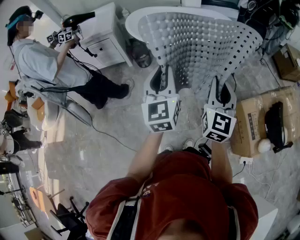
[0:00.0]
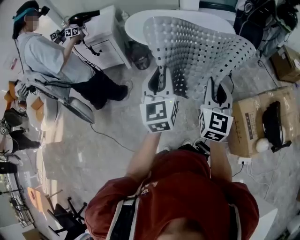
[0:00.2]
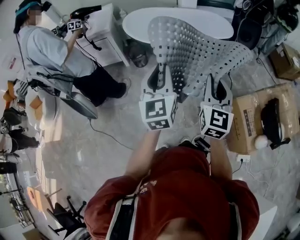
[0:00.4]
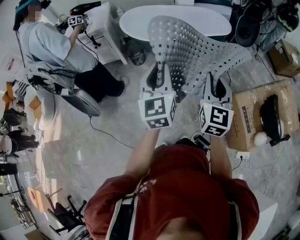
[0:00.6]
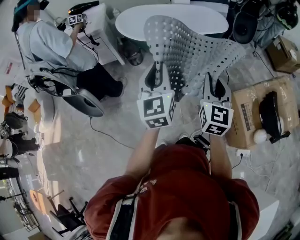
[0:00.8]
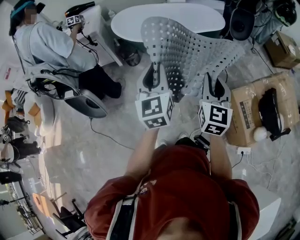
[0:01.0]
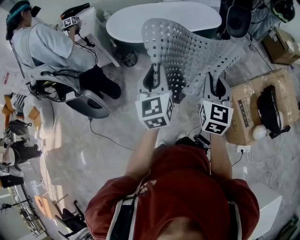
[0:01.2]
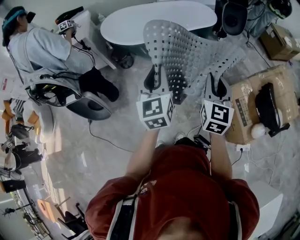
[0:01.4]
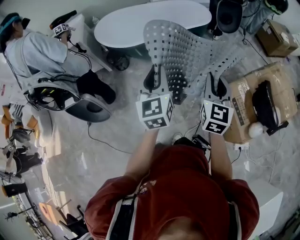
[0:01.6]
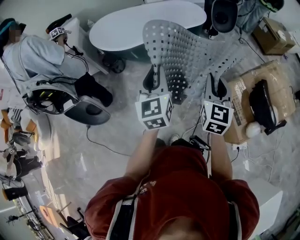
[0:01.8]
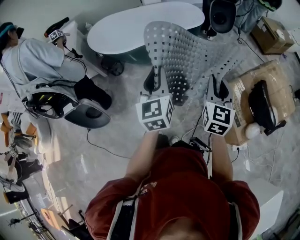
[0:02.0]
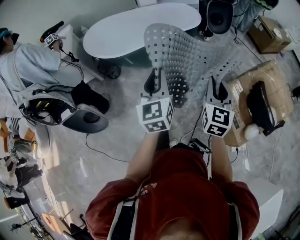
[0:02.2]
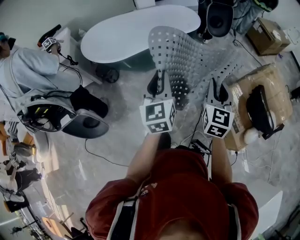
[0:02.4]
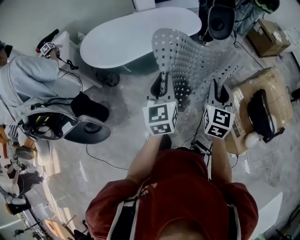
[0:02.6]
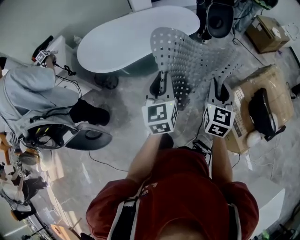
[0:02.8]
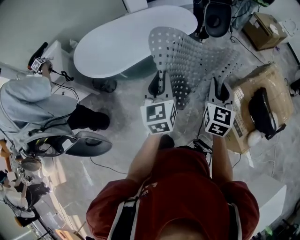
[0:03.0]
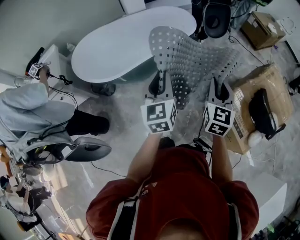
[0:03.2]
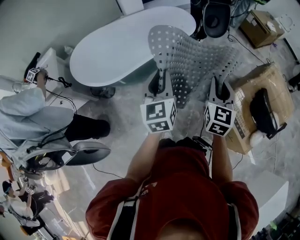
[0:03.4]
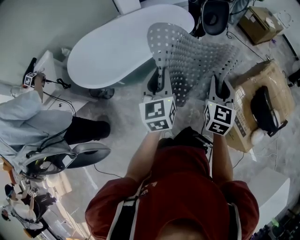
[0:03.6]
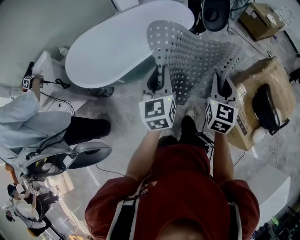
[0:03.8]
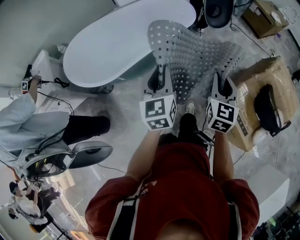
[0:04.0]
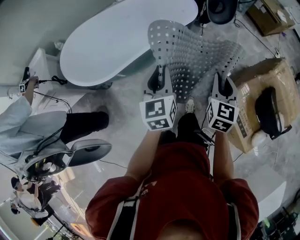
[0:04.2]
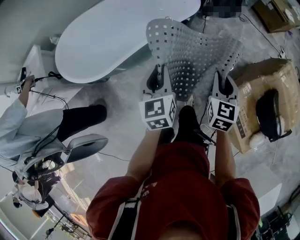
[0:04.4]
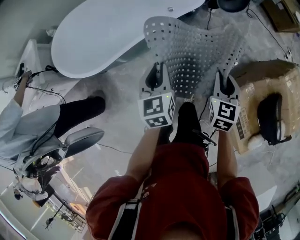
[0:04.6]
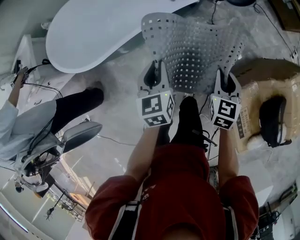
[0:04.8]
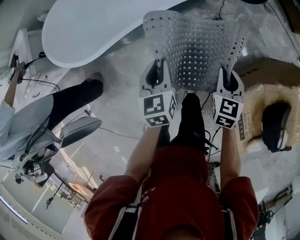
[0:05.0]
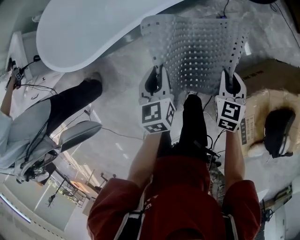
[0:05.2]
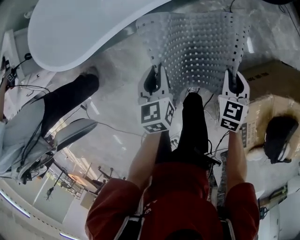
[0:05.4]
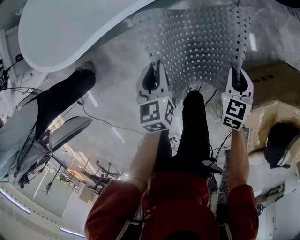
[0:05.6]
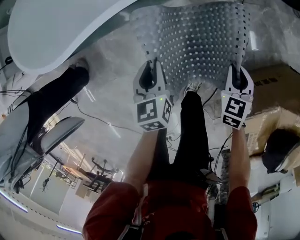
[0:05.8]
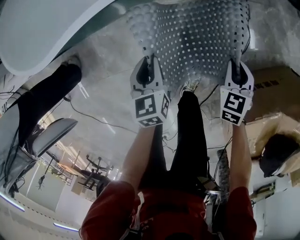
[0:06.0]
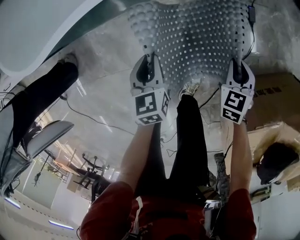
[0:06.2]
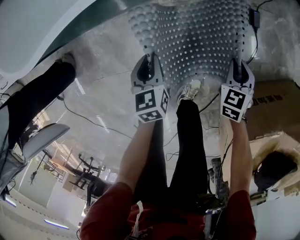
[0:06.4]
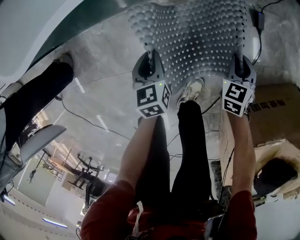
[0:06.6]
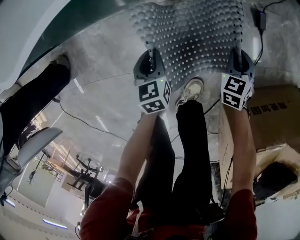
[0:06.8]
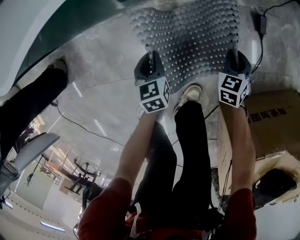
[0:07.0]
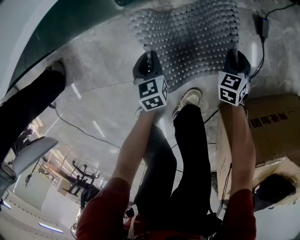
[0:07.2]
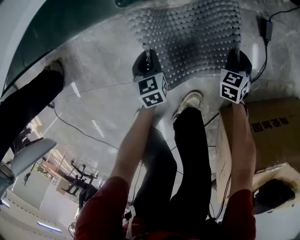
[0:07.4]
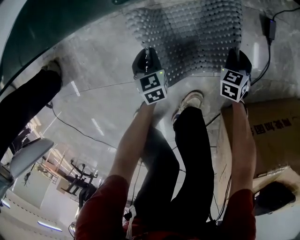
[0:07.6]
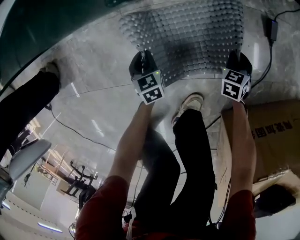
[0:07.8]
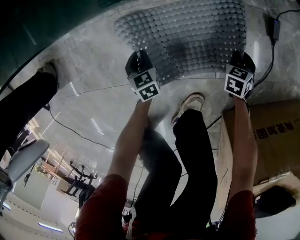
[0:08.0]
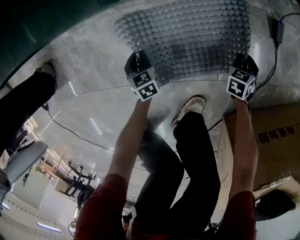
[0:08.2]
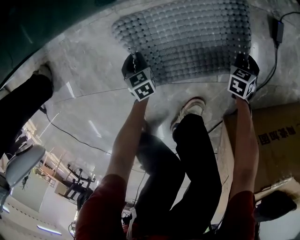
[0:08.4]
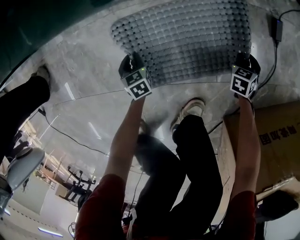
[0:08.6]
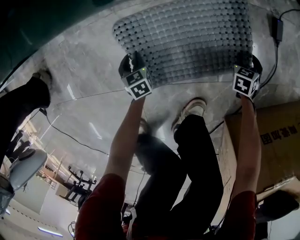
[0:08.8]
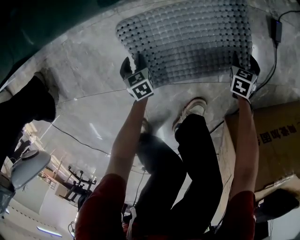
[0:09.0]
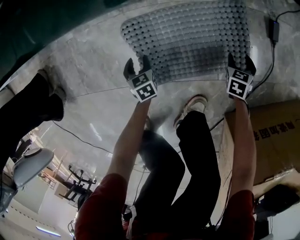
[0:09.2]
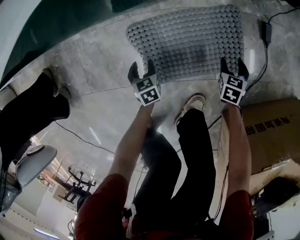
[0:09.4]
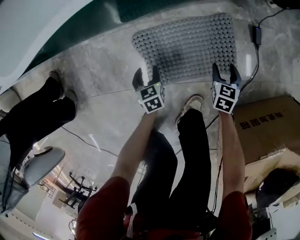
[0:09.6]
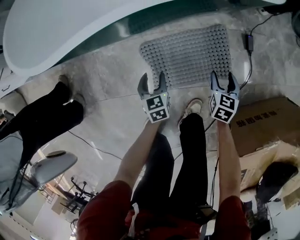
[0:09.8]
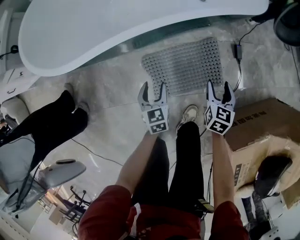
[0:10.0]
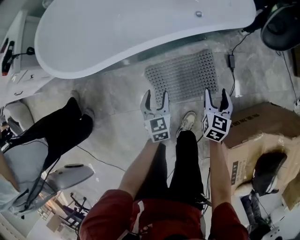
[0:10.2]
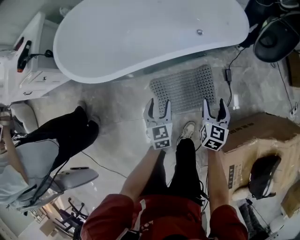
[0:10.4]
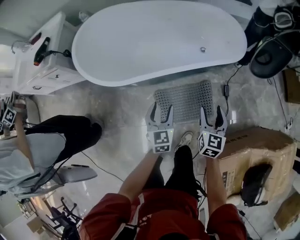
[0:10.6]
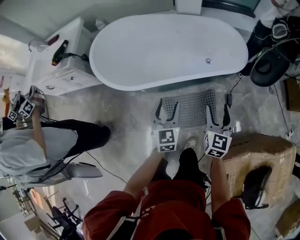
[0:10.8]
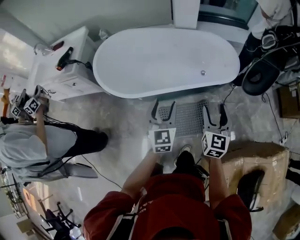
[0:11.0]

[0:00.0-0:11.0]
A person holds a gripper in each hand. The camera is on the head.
0:00.0 to 0:01.6: Both grippers move to the right, roughly 15 cm.
0:01.6 to 0:03.2: The two grippers go about 20 cm forward.
0:03.2 to 0:04.8: The two grippers go about 30 cm downward and forward. The right gripper changes its angle by some 20 degrees. The left gripper rotates approximately 20 degrees.
0:04.8 to 0:06.2: Both grippers travel together downward, roughly 40 cm. The right gripper rotates some 30 degrees.
0:06.2 to 0:07.8: Both grippers move downward, approximately 30 cm.
0:07.8 to 0:09.4: The right gripper moves some 5 cm downward and comes back, and opens up; the left gripper moves roughly 10 cm downward and comes back, and opens up.
0:09.4 to 0:11.0: The two grippers go about 80 cm upward. The right gripper points its fingers roughly 40 degrees further upward. The left gripper points its fingers about 40 degrees further upward.

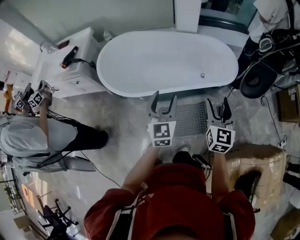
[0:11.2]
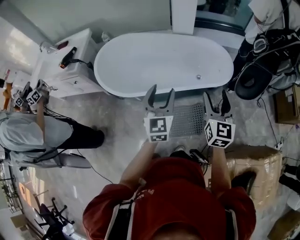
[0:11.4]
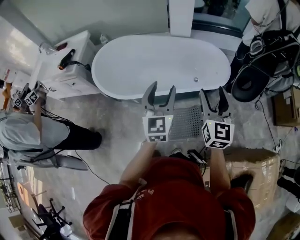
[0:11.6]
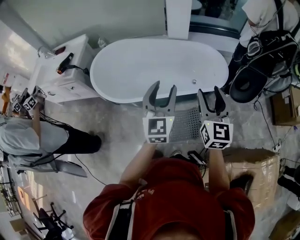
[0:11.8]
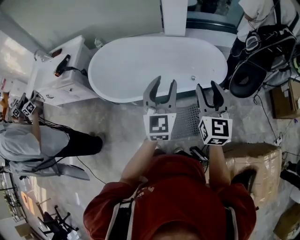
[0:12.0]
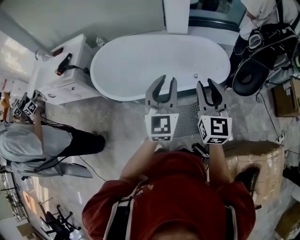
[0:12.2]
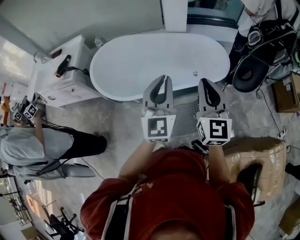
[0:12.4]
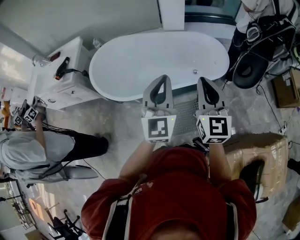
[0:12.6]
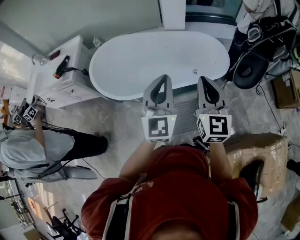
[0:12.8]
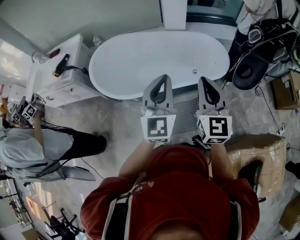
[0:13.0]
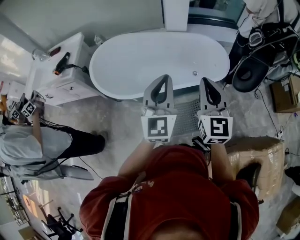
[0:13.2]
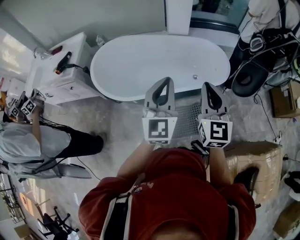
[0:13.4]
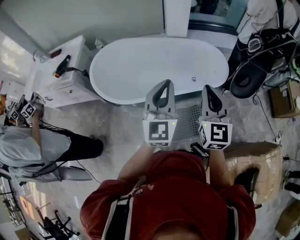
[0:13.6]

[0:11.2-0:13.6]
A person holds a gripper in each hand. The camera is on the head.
0:11.2 to 0:12.4: The grippers both shift upward by approximately 10 cm. The left gripper closes up; the right gripper closes.
0:12.4 to 0:13.6: There are only small adjustments of the grippers.

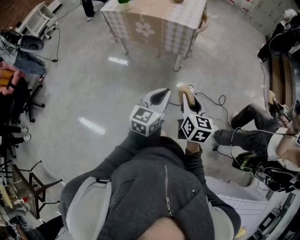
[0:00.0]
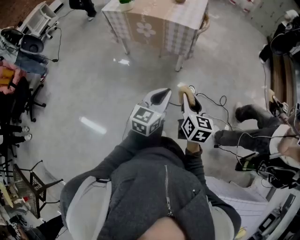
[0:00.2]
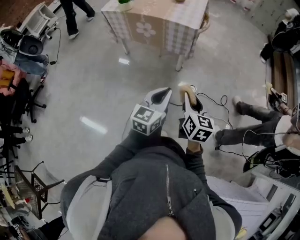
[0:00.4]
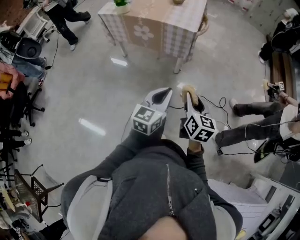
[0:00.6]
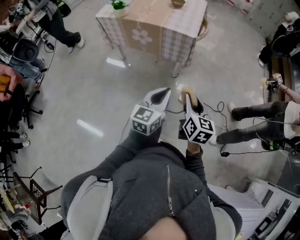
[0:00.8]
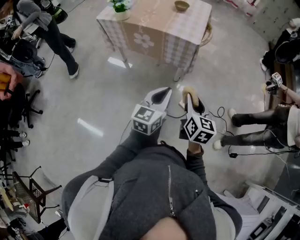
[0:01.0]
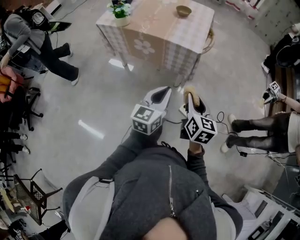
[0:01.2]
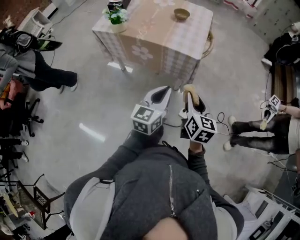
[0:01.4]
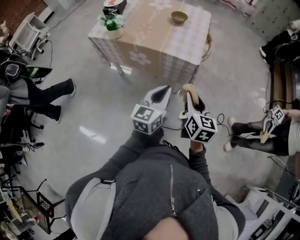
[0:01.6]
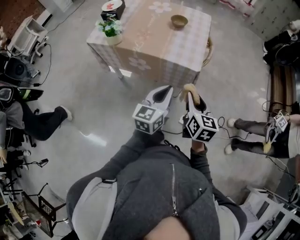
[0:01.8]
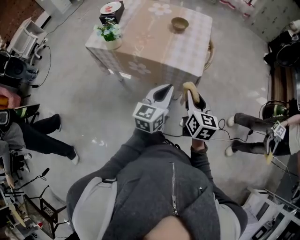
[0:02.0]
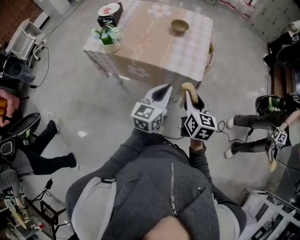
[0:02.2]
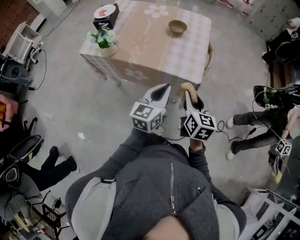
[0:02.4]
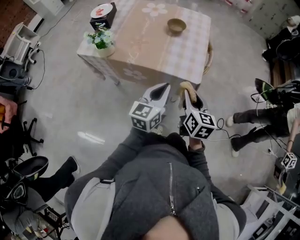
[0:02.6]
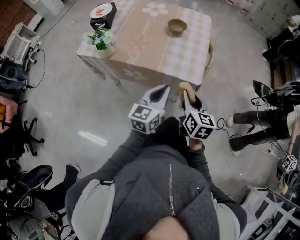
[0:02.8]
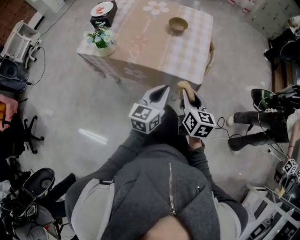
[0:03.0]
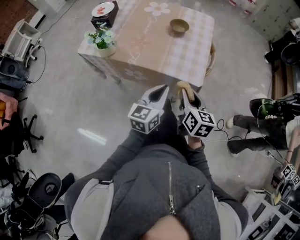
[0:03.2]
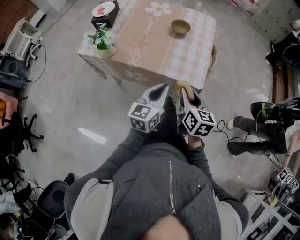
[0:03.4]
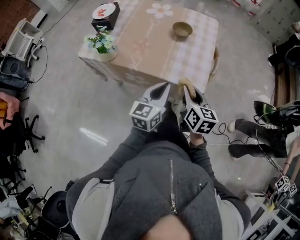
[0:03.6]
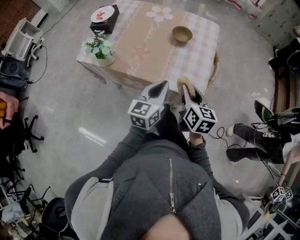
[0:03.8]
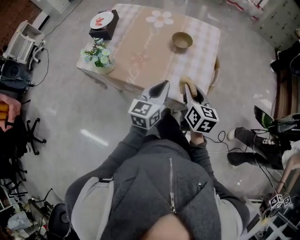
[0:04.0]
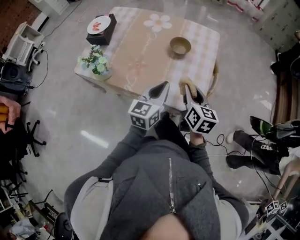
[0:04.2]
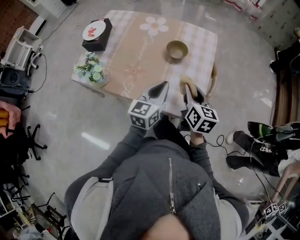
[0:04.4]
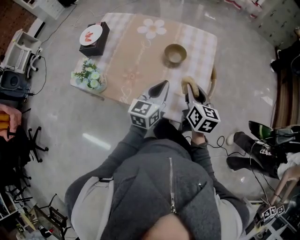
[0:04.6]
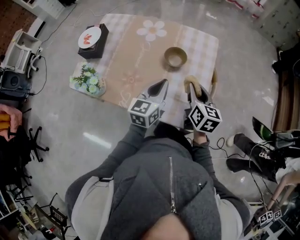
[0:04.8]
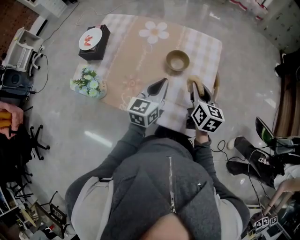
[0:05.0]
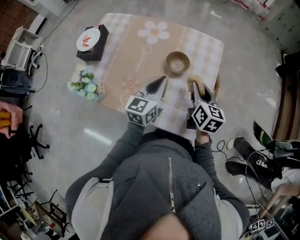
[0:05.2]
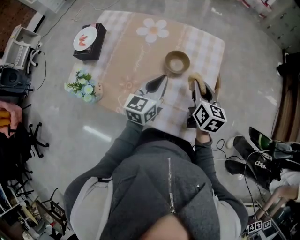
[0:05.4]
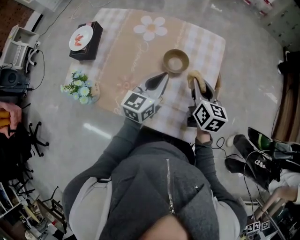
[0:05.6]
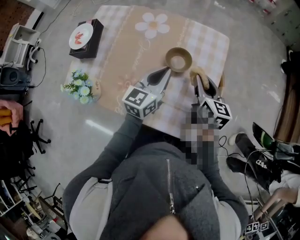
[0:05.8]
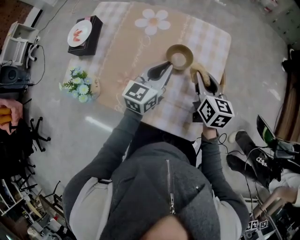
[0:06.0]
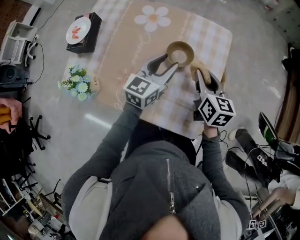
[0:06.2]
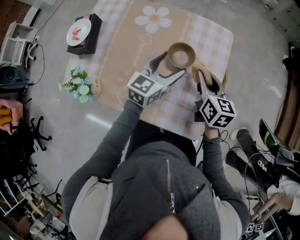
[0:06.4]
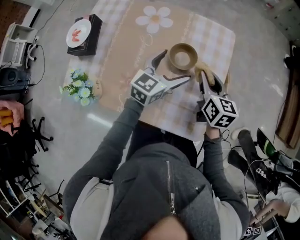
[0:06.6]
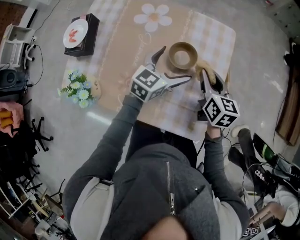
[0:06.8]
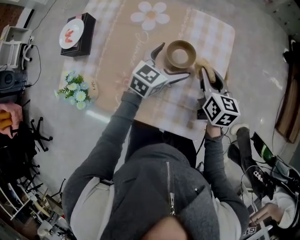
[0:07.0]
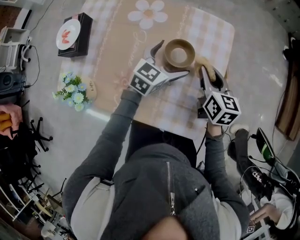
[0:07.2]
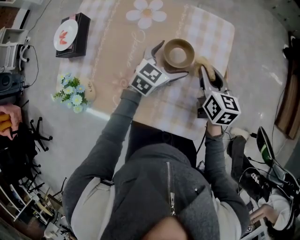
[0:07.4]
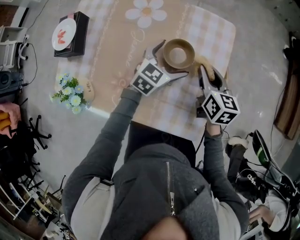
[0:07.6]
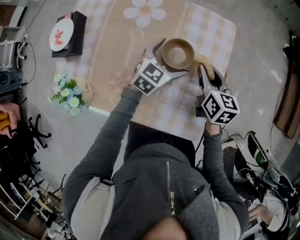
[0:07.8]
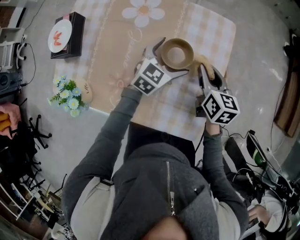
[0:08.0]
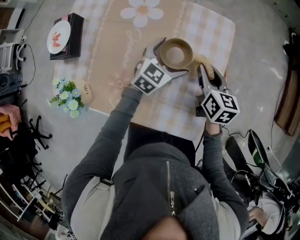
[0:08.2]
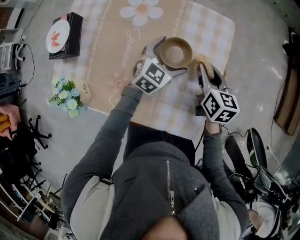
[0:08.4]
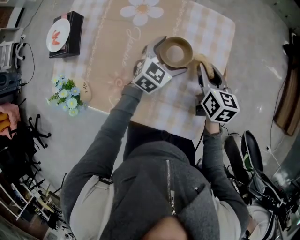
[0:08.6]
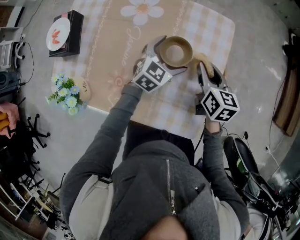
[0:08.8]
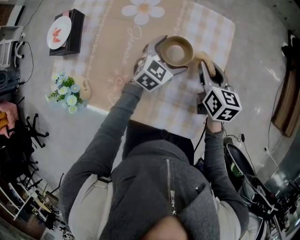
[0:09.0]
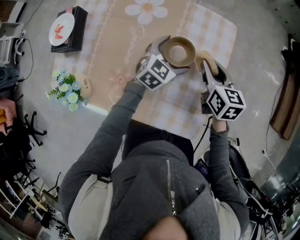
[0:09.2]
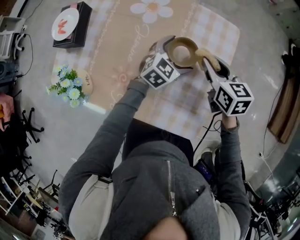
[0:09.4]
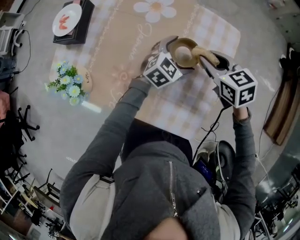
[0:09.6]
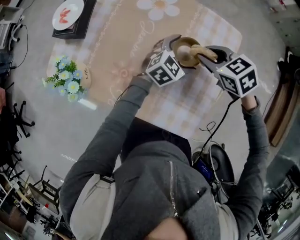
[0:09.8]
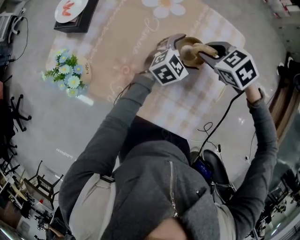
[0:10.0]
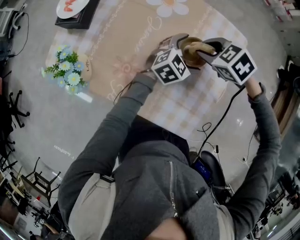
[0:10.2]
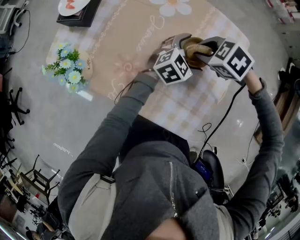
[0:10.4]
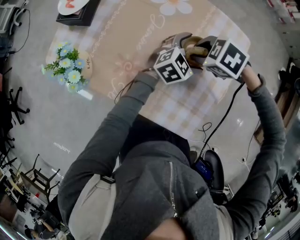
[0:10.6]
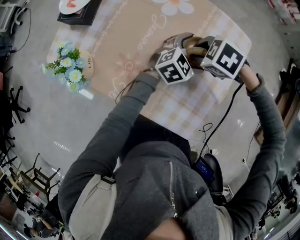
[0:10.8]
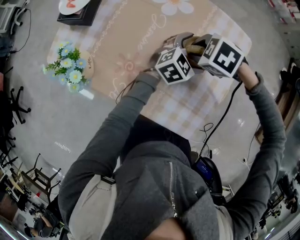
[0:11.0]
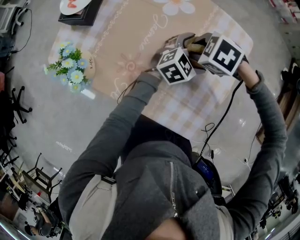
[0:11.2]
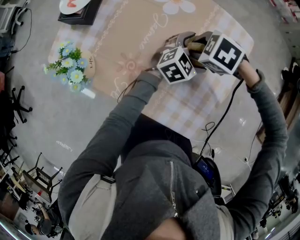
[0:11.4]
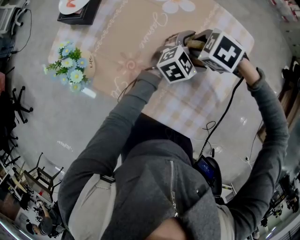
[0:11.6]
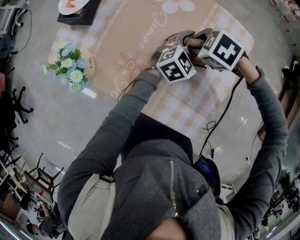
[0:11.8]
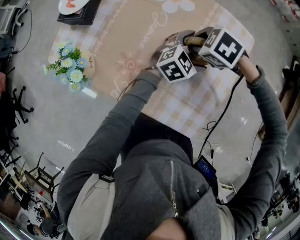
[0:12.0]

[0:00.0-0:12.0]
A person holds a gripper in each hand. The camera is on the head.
0:00.0 to 0:01.6: The grippers both shift forward by some 30 cm.
0:01.6 to 0:03.0: Both grippers travel together forward, approximately 15 cm.
0:03.0 to 0:04.4: Both grippers move forward, some 20 cm.
0:04.4 to 0:06.0: The grippers both shift forward by roughly 15 cm.
0:06.0 to 0:07.6: The left gripper is displaced downward and forward by approximately 10 cm, swivels about 30 degrees, and opens up.
0:07.6 to 0:09.0: There are only small adjustments of the grippers.
0:09.0 to 0:10.4: The right gripper ends up some 10 cm from where it was, and tips its fingers downward by some 40 degrees.
0:10.4 to 0:12.0: There are only small adjustments of the grippers.
